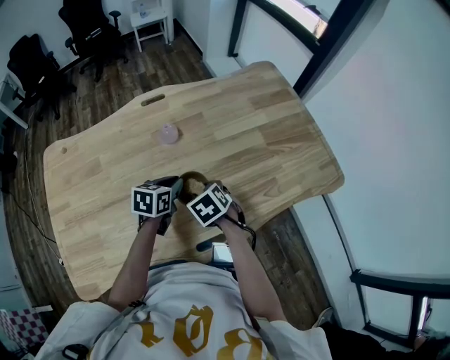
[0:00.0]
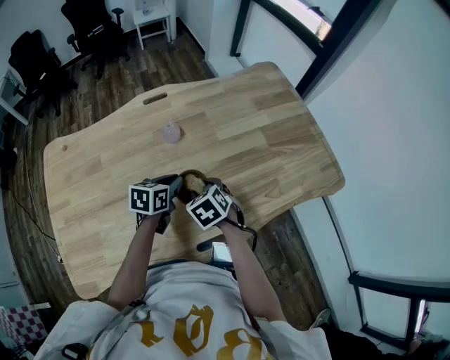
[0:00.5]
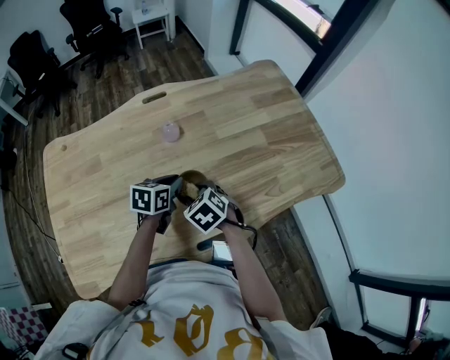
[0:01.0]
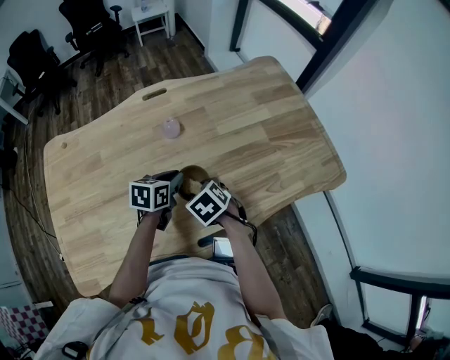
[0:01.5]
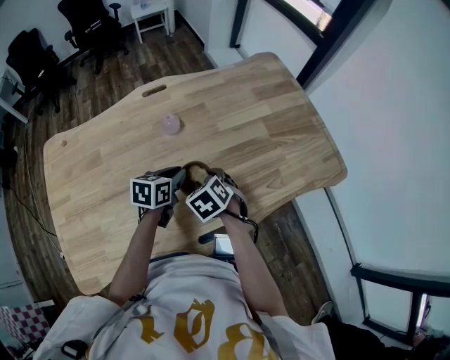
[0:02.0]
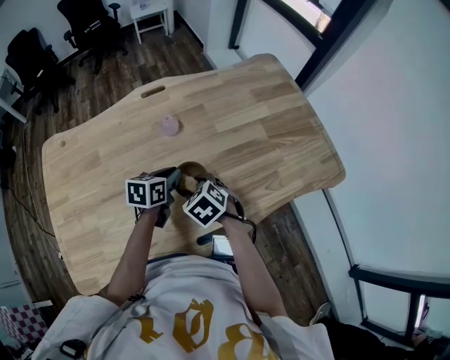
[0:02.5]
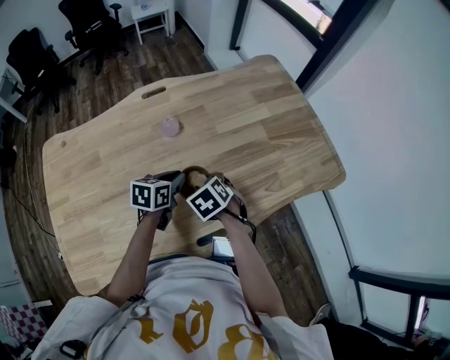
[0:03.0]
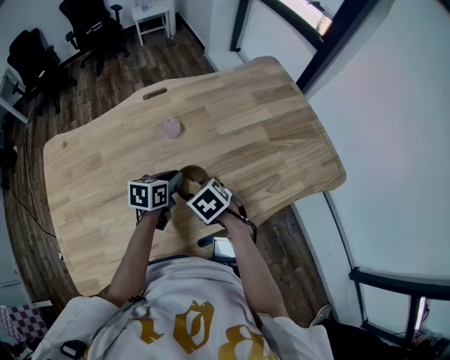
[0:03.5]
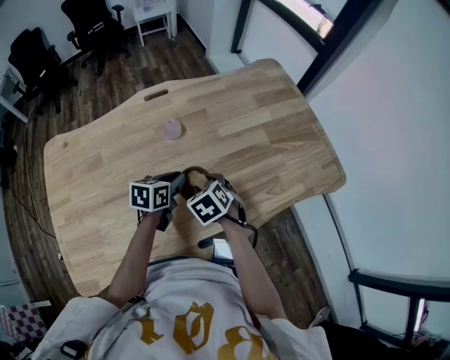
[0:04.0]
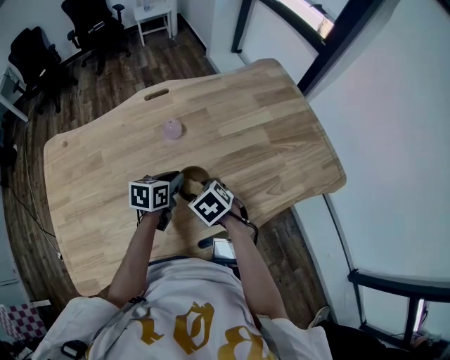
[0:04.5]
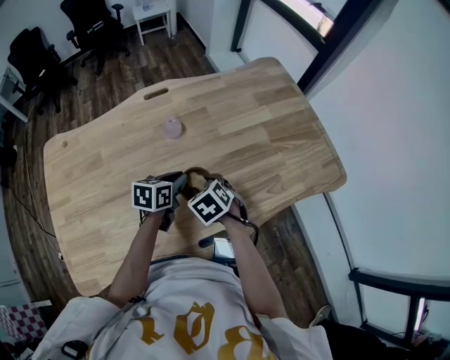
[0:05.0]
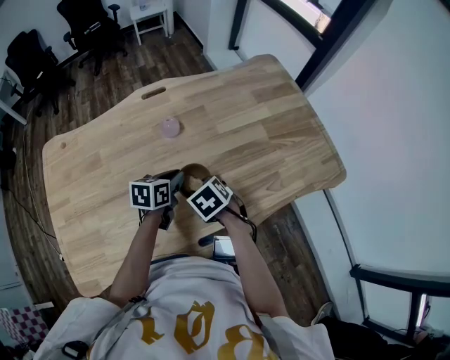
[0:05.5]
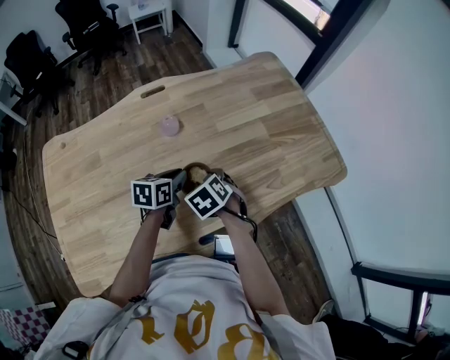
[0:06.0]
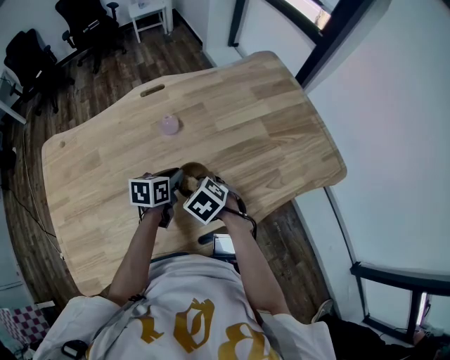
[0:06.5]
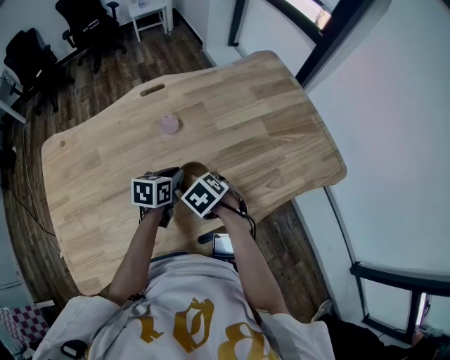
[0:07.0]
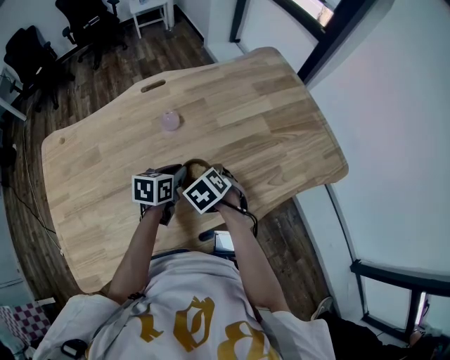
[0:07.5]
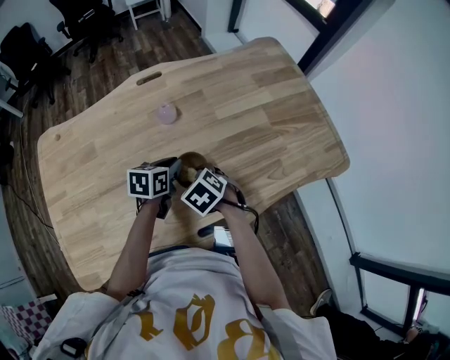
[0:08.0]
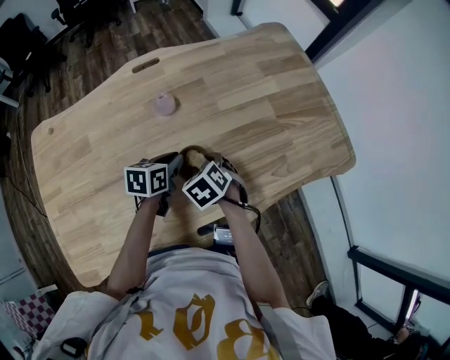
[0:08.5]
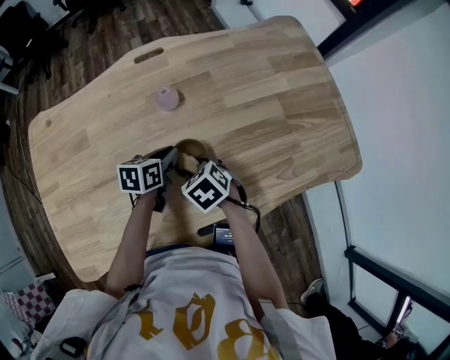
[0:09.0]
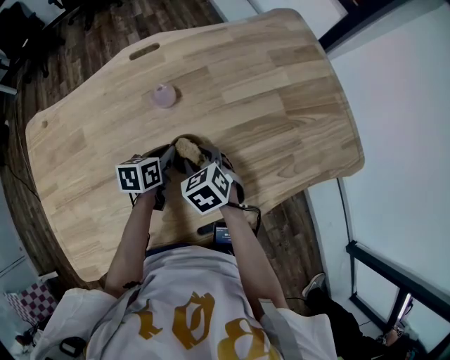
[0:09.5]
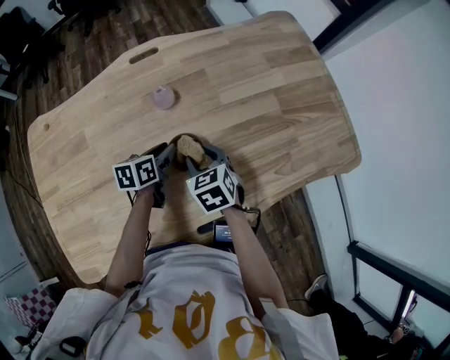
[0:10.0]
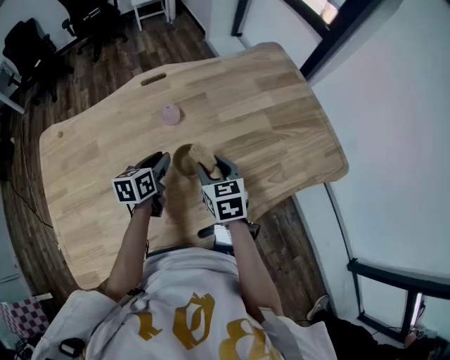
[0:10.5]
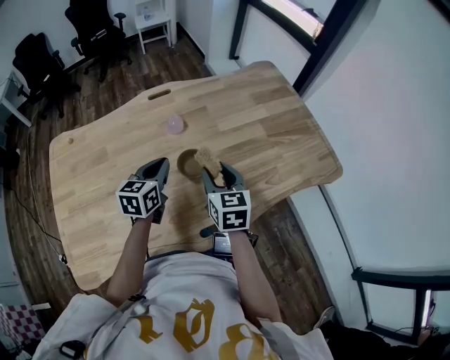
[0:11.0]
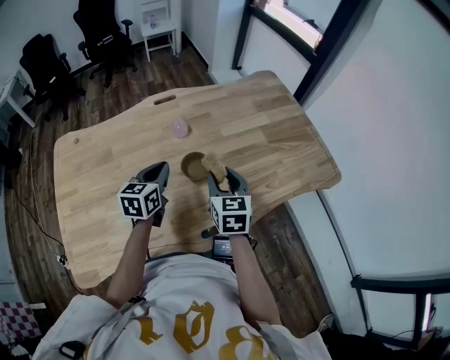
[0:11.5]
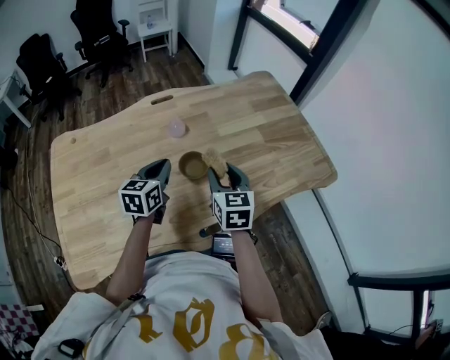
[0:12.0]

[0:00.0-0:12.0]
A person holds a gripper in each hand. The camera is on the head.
0:00.0 to 0:08.0: There are only small adjustments of the grippers.
0:08.0 to 0:10.0: The right gripper moves forward, roughly 5 cm, and rotates some 20 degrees, while the left gripper changes place by some 5 cm.
0:10.0 to 0:12.0: Both grippers travel together upward and backward, some 20 cm. The right gripper turns by approximately 30 degrees; the left gripper swivels some 30 degrees, and closes.

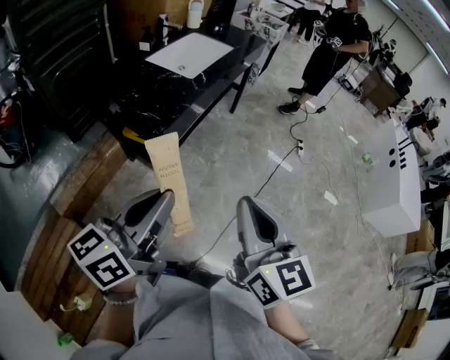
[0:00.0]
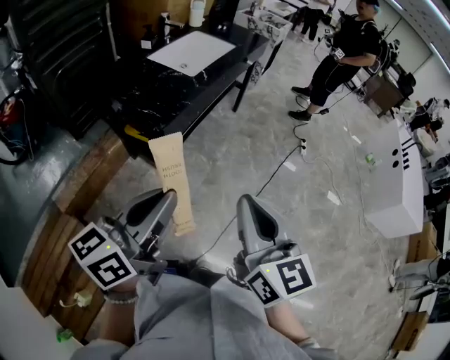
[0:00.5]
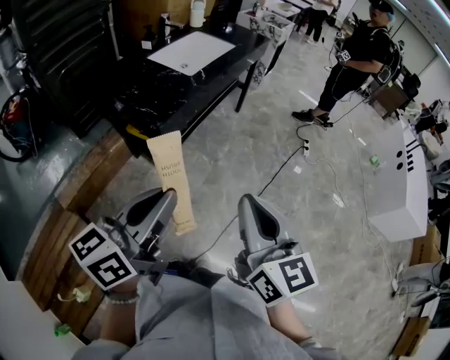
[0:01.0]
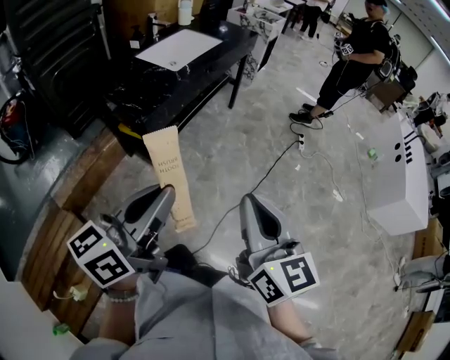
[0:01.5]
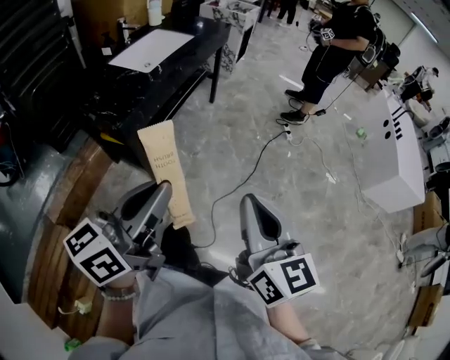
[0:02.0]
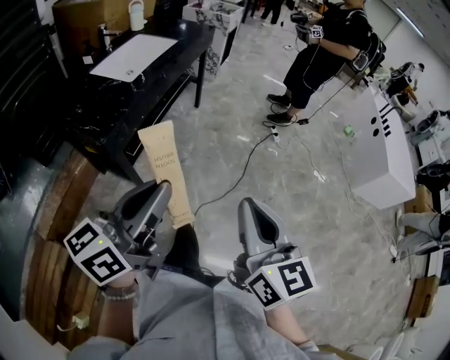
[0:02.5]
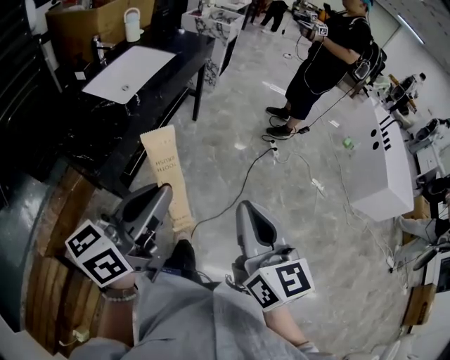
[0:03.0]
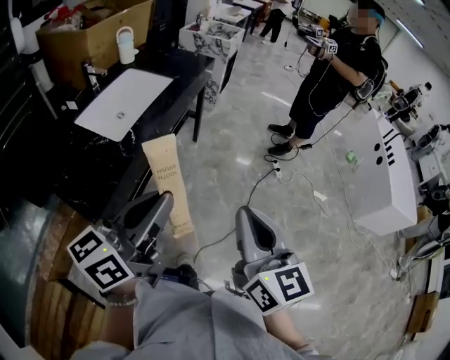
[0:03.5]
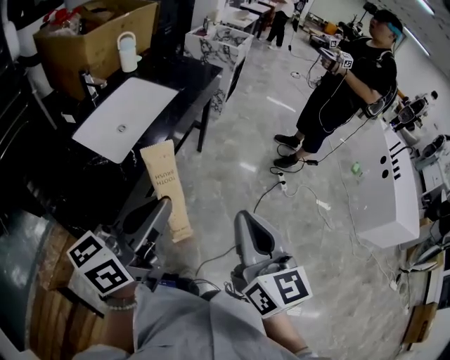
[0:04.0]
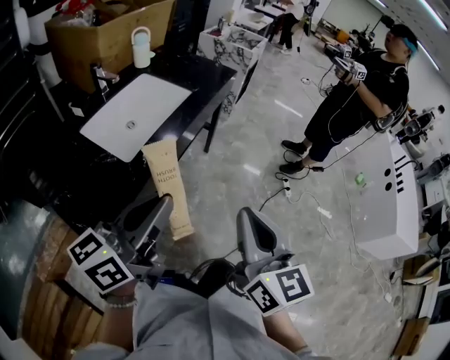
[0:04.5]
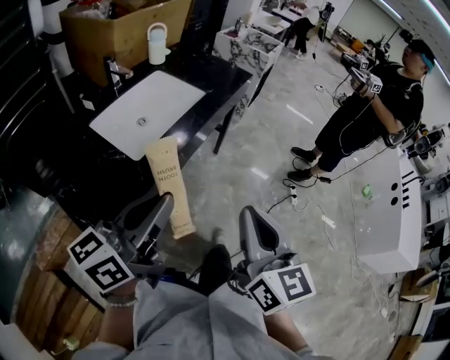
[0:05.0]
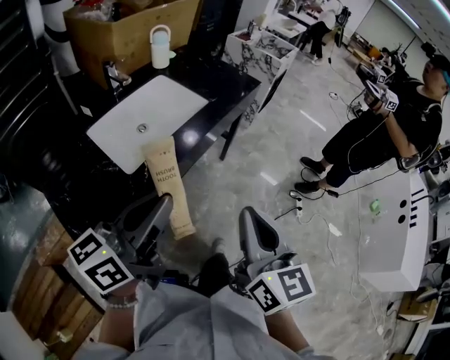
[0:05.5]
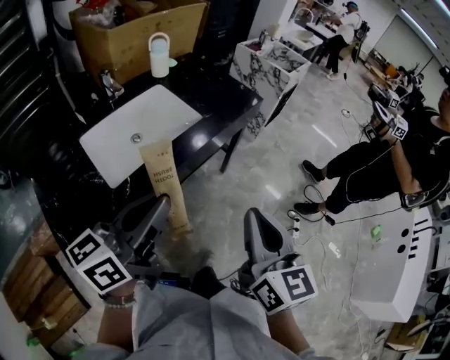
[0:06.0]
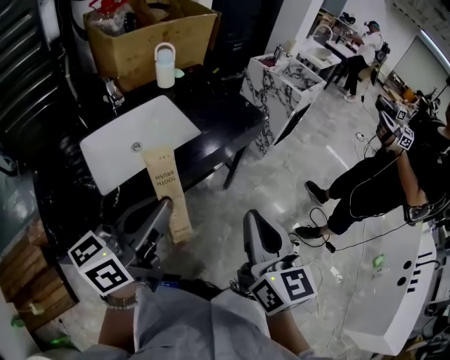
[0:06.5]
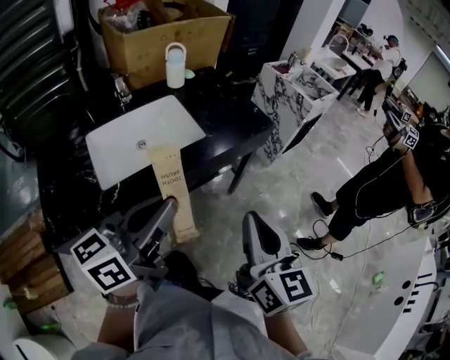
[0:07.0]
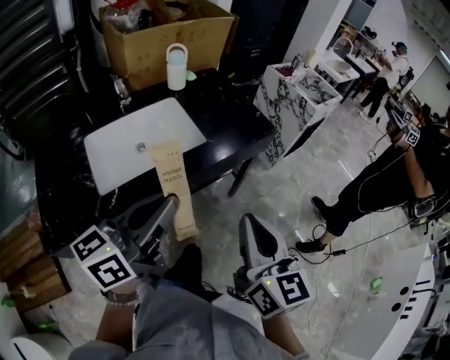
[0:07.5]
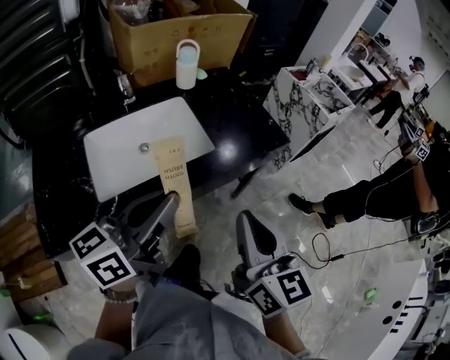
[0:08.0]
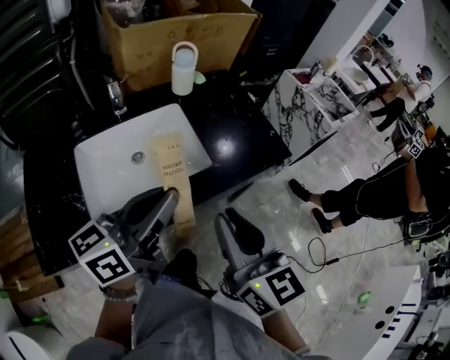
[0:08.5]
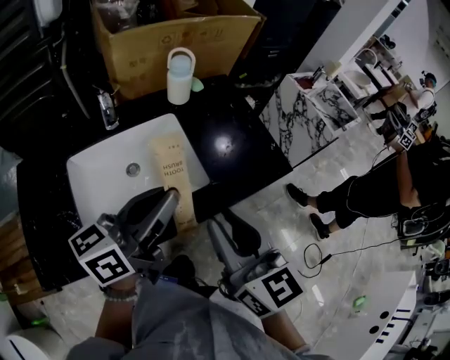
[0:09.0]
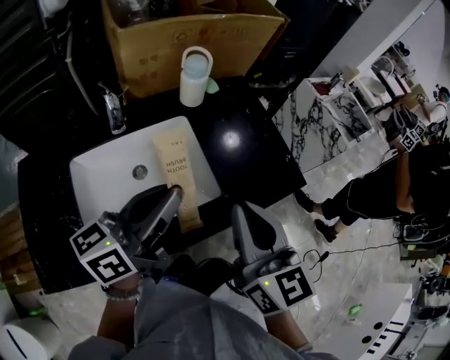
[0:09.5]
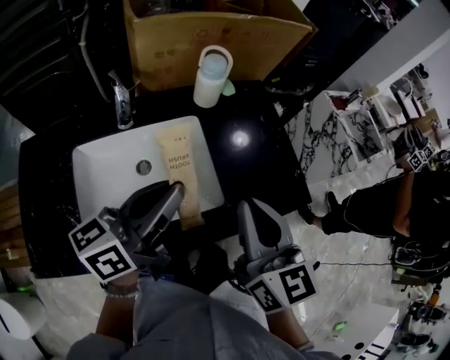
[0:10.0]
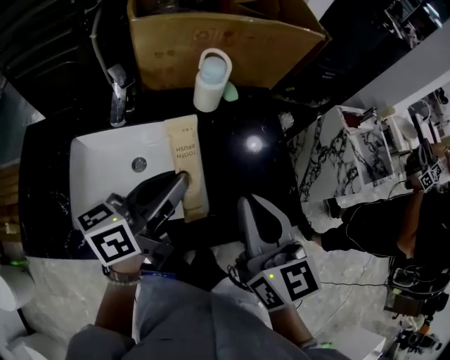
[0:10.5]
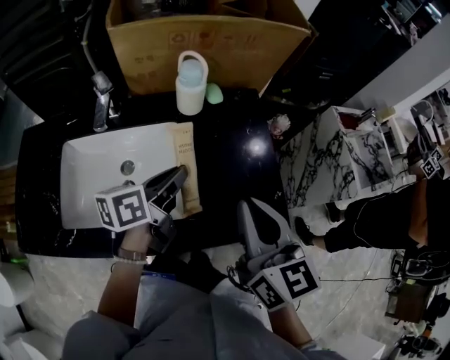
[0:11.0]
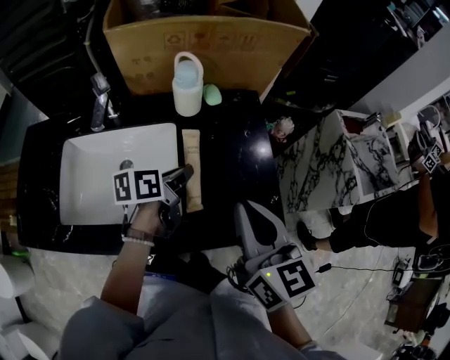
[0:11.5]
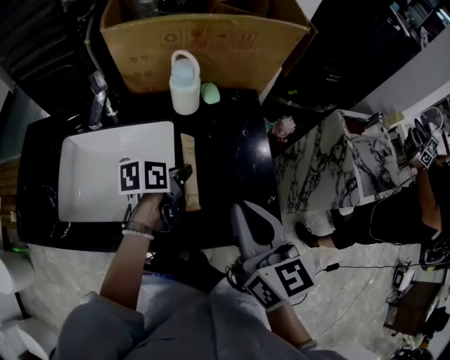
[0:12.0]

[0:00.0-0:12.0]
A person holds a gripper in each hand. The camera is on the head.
0:00.0 to 0:02.0: Both grippers move to the right, approximately 15 cm.
0:02.0 to 0:04.0: Both grippers are carried forward, about 40 cm.
0:04.0 to 0:06.0: Both grippers travel together forward, roughly 25 cm.
0:06.0 to 0:08.0: Both grippers move forward, about 15 cm. The right gripper rotates about 20 degrees.
0:08.0 to 0:10.0: Both grippers move forward, approximately 25 cm. The right gripper opens, then closes once more.
0:10.0 to 0:12.0: The left gripper moves downward, forward and to the right, about 30 cm, and angles its fingers downward, by some 40 degrees. Meanwhile the right gripper is displaced to the right and forward by roughly 15 cm.

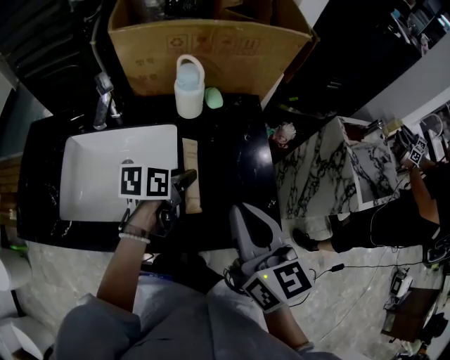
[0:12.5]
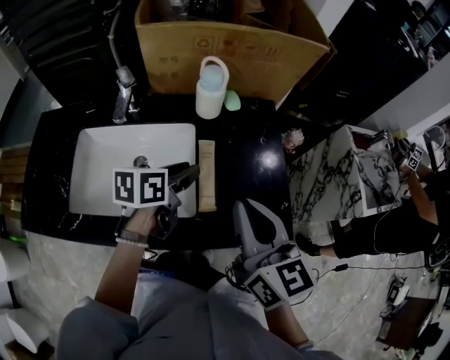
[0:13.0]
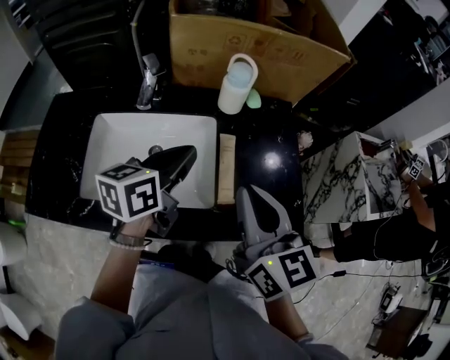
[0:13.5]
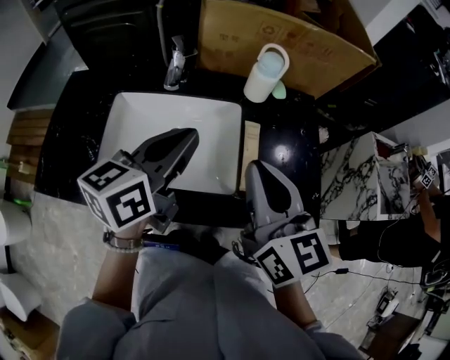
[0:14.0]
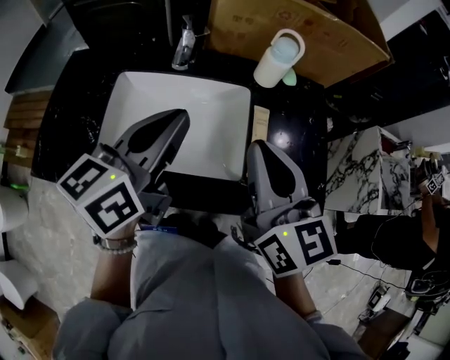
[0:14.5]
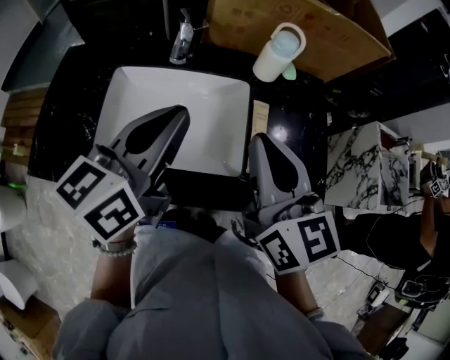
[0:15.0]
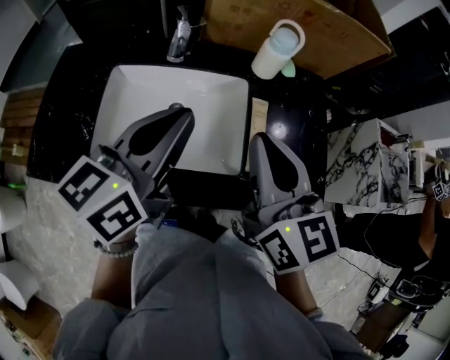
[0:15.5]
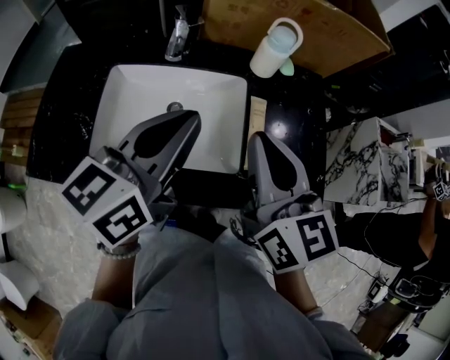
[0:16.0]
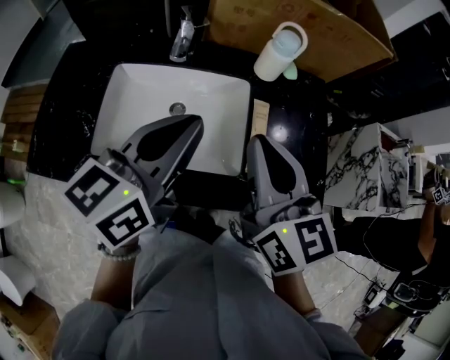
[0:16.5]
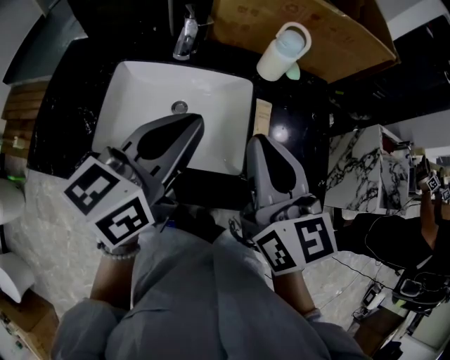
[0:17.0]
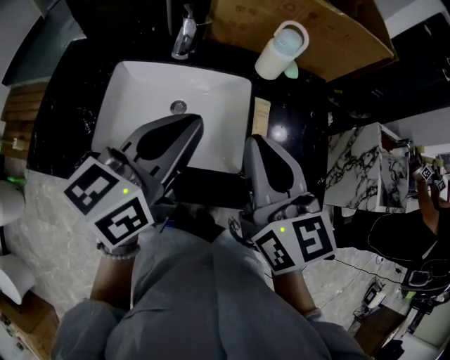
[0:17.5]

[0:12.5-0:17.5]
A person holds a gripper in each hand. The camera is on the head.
0:12.5 to 0:15.0: The right gripper shifts some 20 cm to the left, while the left gripper heads upward, to the left and backward, covering some 30 cm, tips its fingers upward by some 30 degrees, and closes up.
0:15.0 to 0:17.5: The grippers stay close to where they were, moving slightly.
